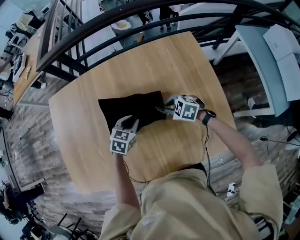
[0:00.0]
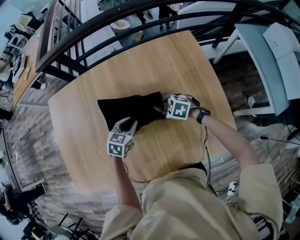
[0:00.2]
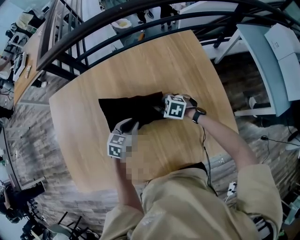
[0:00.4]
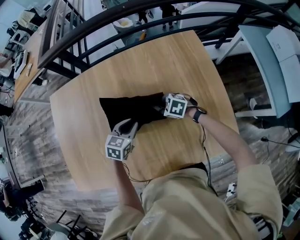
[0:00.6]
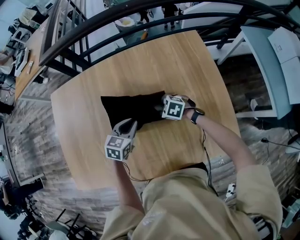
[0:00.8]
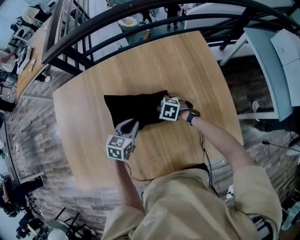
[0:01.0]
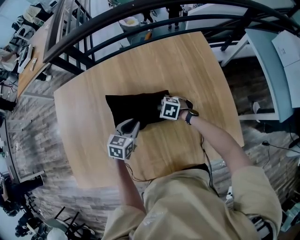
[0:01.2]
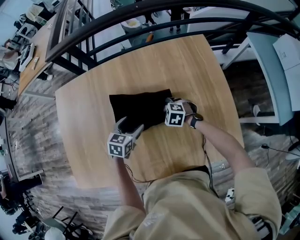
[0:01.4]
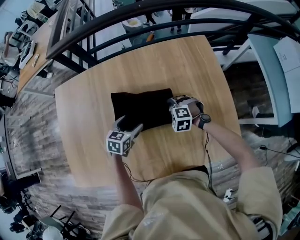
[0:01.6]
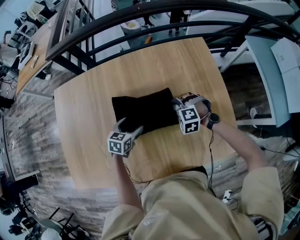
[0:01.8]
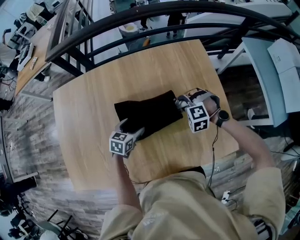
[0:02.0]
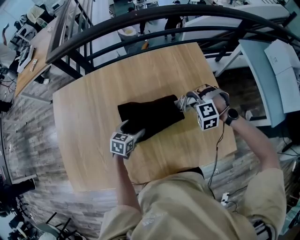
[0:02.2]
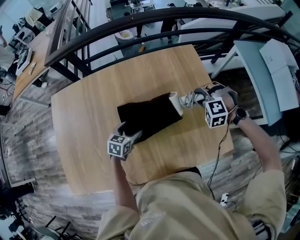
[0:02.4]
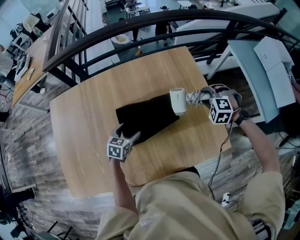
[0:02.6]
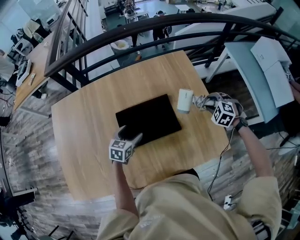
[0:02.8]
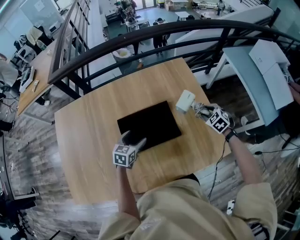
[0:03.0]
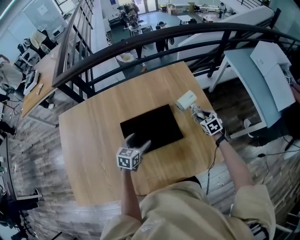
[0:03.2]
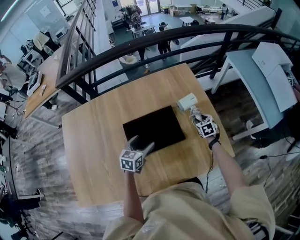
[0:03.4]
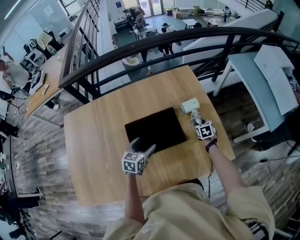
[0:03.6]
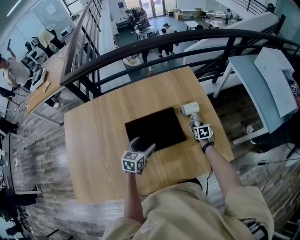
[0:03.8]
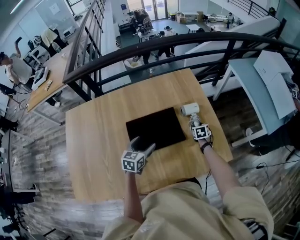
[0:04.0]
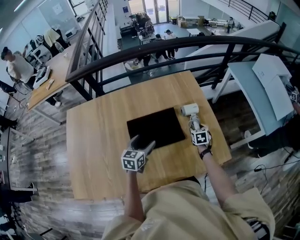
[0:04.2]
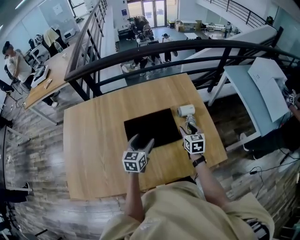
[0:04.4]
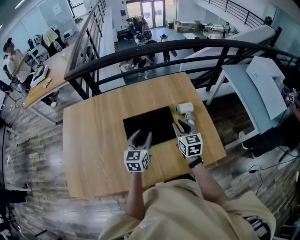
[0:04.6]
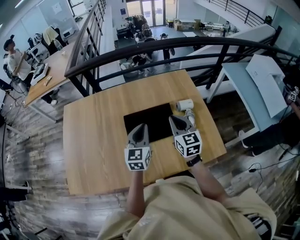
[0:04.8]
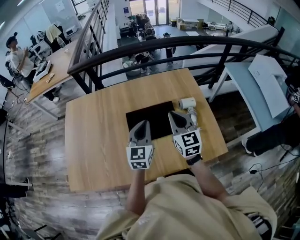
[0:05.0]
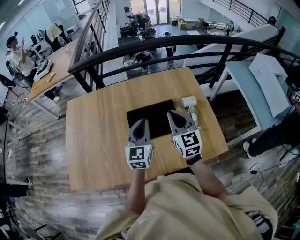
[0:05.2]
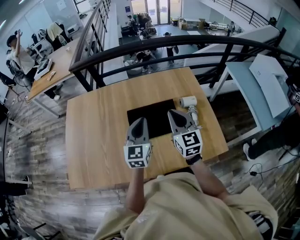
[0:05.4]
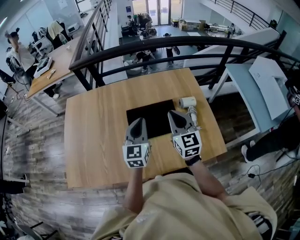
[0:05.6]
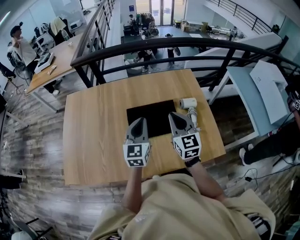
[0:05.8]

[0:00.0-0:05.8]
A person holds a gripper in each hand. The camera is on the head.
0:00.0 to 0:01.4: The right gripper moves to the left and downward, some 10 cm, and opens its fingers; the left gripper opens.
0:01.4 to 0:02.8: The left gripper moves roughly 5 cm, while the right gripper moves about 35 cm, and swivels about 30 degrees.
0:02.8 to 0:04.4: The right gripper heads to the left and backward, covering approximately 15 cm, reaches about 15 cm downward, then returns, and twists some 60 degrees clockwise, seen from behind. Meanwhile the left gripper heads upward, to the right and backward, covering roughly 10 cm, and rotates approximately 20 degrees.
0:04.4 to 0:05.8: The left gripper heads upward, covering about 10 cm, swivels roughly 20 degrees, and closes its fingers. Meanwhile the right gripper heads upward, to the left and backward, covering some 20 cm, rotates about 30 degrees, and closes up.

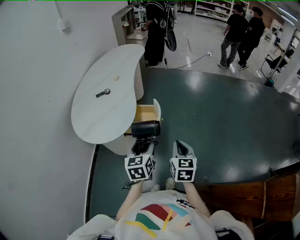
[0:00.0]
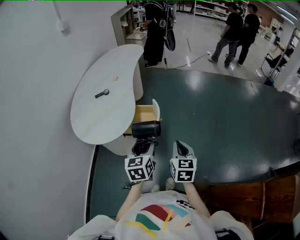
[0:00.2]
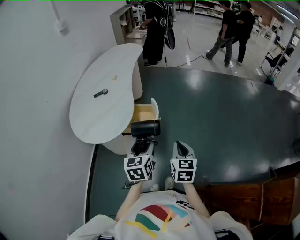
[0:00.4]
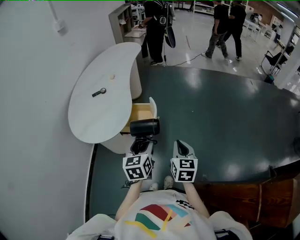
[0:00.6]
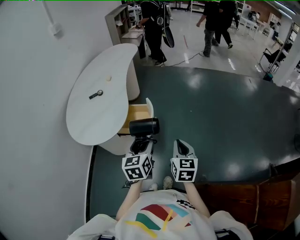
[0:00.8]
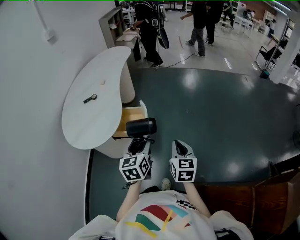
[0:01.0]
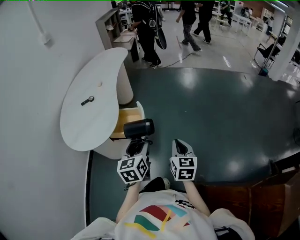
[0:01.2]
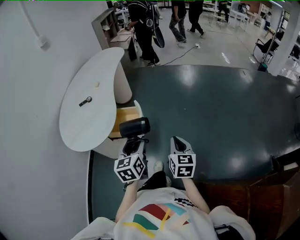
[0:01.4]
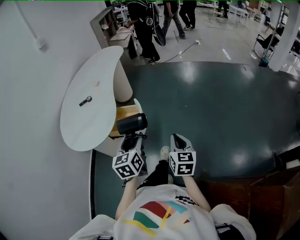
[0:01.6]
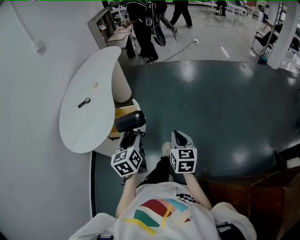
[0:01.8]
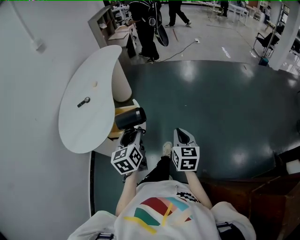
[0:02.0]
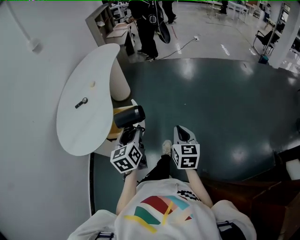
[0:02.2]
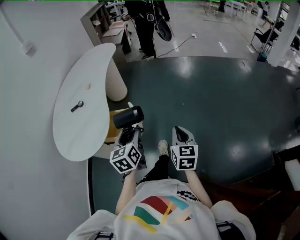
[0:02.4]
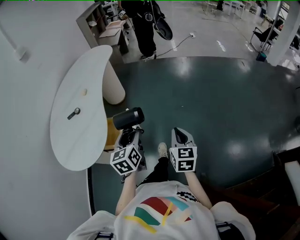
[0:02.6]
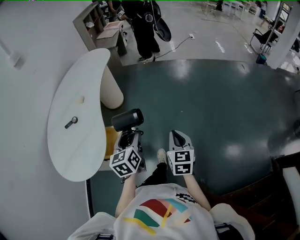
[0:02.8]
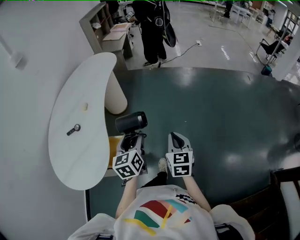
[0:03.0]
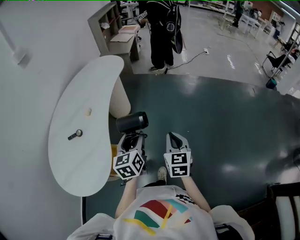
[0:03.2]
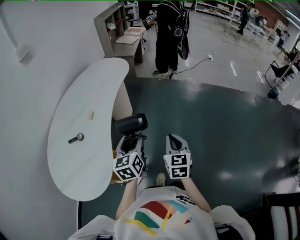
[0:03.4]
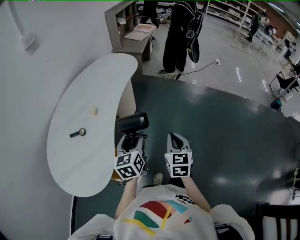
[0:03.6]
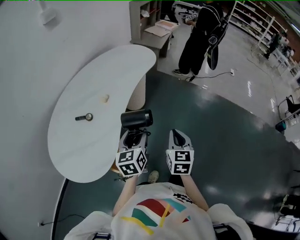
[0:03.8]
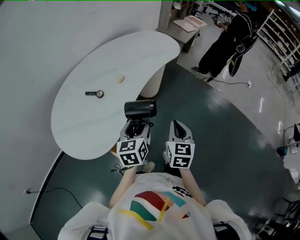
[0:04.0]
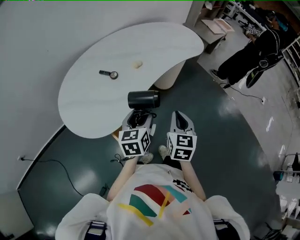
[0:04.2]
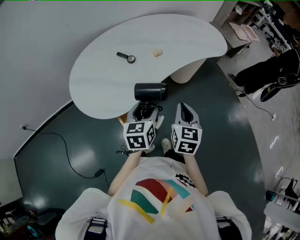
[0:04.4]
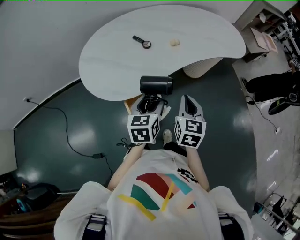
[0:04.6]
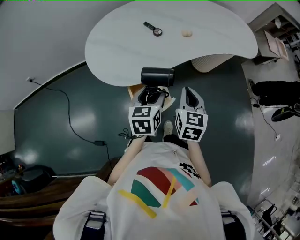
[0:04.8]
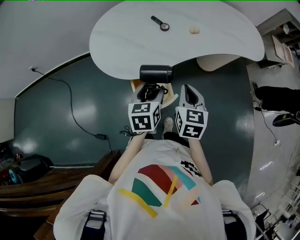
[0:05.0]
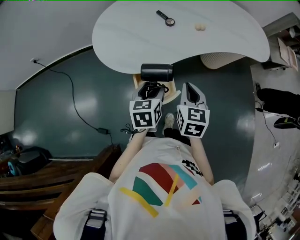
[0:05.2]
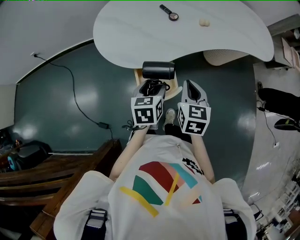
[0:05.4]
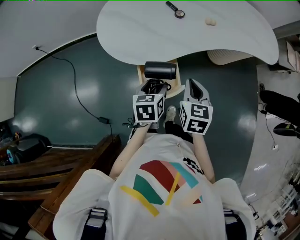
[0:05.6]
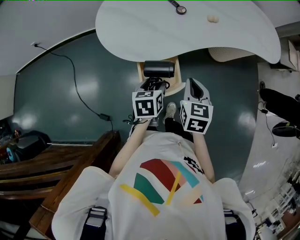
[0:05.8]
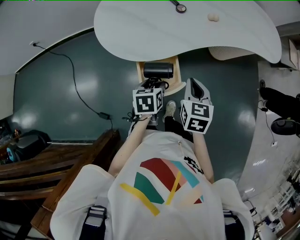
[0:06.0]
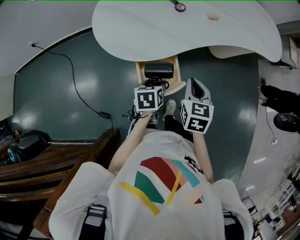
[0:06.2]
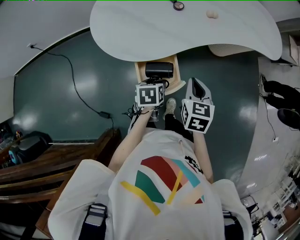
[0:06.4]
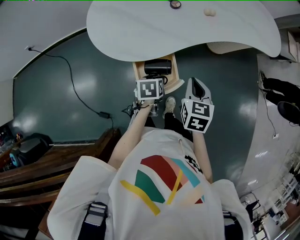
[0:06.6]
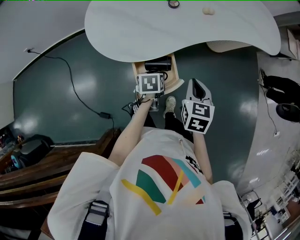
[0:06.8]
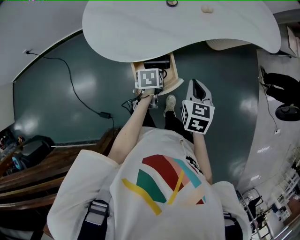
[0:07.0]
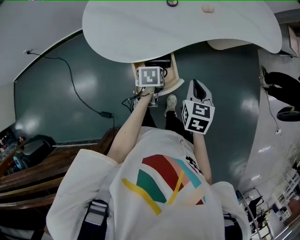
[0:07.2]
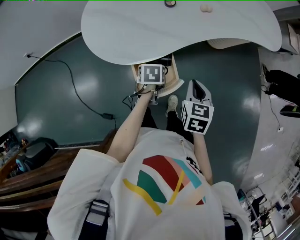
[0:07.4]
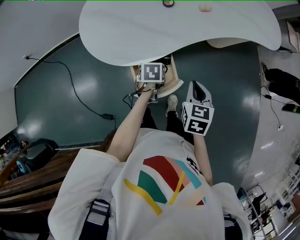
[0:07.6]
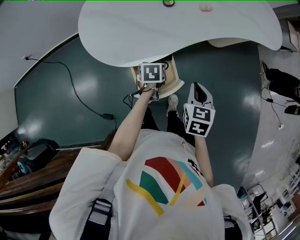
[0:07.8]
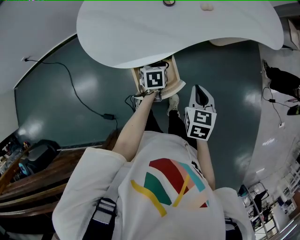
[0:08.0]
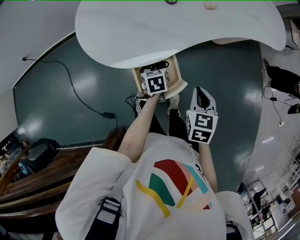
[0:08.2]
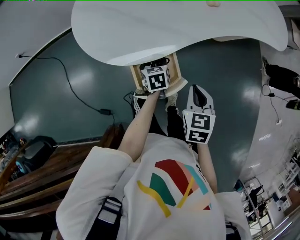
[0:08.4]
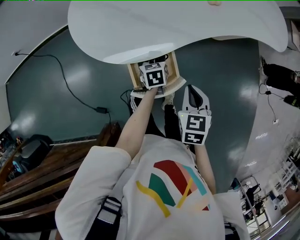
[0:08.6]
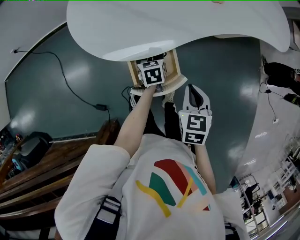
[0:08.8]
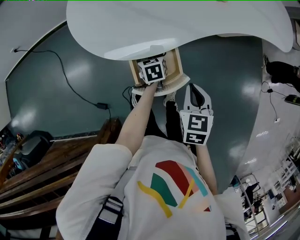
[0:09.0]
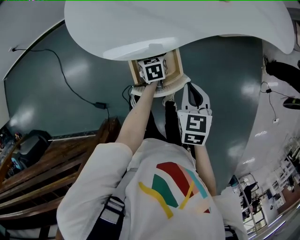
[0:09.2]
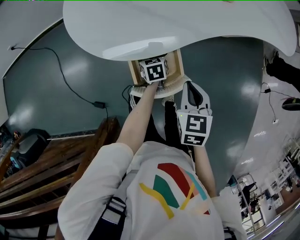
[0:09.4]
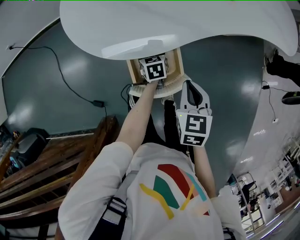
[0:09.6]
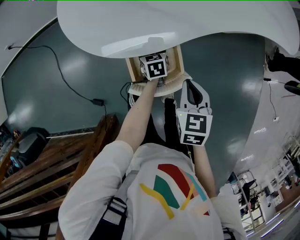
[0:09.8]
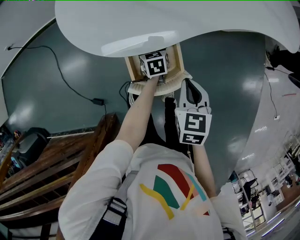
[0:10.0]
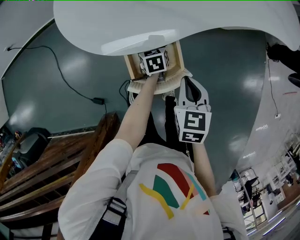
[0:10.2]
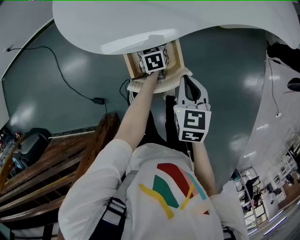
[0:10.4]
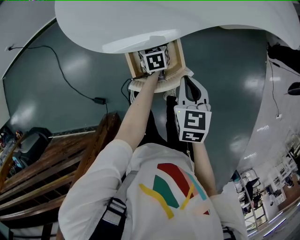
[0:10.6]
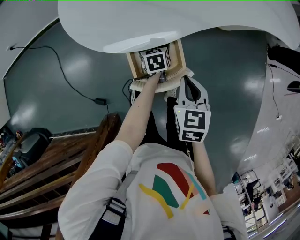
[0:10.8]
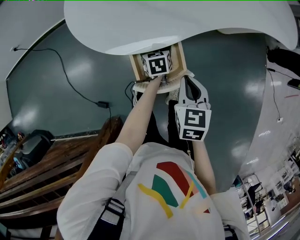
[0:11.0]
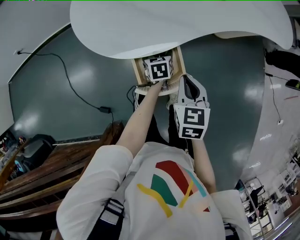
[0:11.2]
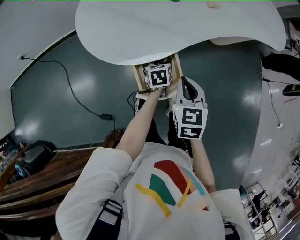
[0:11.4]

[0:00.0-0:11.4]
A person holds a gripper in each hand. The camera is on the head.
0:00.0 to 0:01.4: The two grippers go some 10 cm to the right.
0:01.4 to 0:02.8: The two grippers go some 20 cm forward.
0:02.8 to 0:04.2: The left gripper changes place by approximately 20 cm, and changes its angle by some 40 degrees. Meanwhile the right gripper shifts by roughly 35 cm, and turns by roughly 40 degrees.
0:04.2 to 0:05.6: The right gripper changes place by approximately 15 cm, and changes its angle by some 40 degrees, while the left gripper shifts about 10 cm downward, and turns by roughly 40 degrees.
0:05.6 to 0:07.2: The left gripper goes roughly 10 cm downward, and changes its angle by approximately 20 degrees, while the right gripper shifts by roughly 5 cm.
0:07.2 to 0:08.6: The left gripper moves forward and downward, roughly 10 cm, and changes its angle by roughly 20 degrees.
0:08.6 to 0:10.0: The left gripper shifts roughly 10 cm downward.
0:10.0 to 0:11.4: Both grippers move upward, approximately 5 cm.

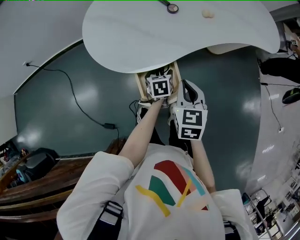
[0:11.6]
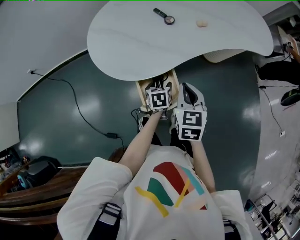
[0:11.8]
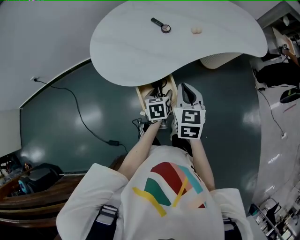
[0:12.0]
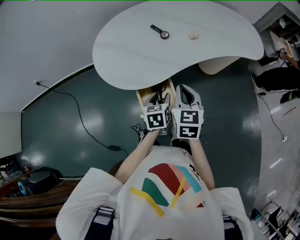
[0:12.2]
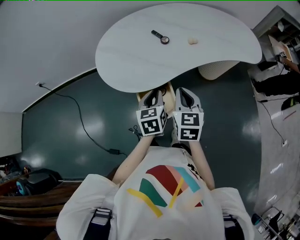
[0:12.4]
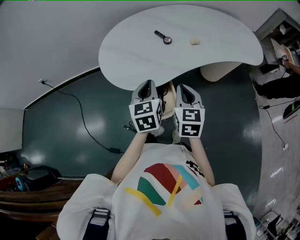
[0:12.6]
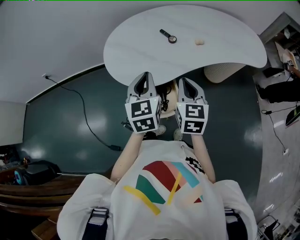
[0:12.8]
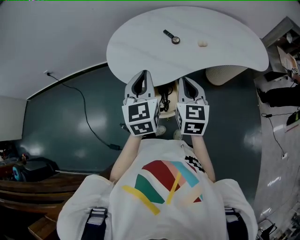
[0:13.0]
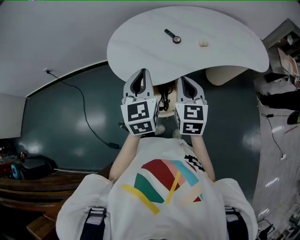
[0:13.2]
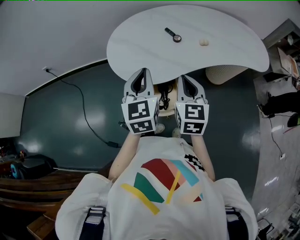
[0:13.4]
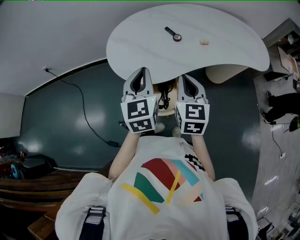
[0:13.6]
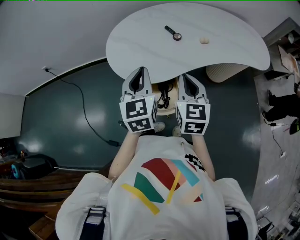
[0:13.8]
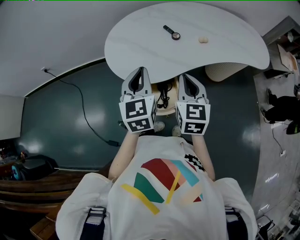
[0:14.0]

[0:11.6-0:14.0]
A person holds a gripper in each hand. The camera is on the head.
0:11.6 to 0:12.8: The right gripper moves upward, some 10 cm; the left gripper travels upward by approximately 35 cm, angles its fingers upward, by some 30 degrees, and closes its fingers.
0:12.8 to 0:14.0: The grippers make only small movements.

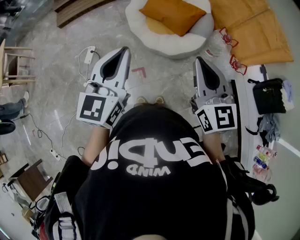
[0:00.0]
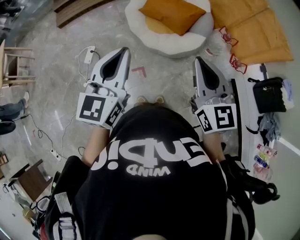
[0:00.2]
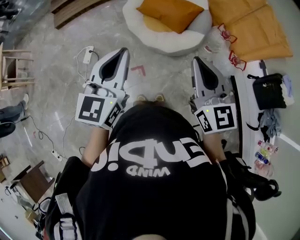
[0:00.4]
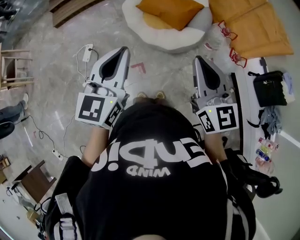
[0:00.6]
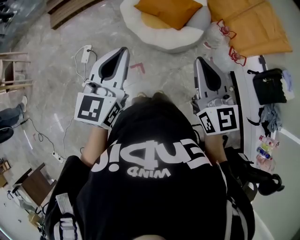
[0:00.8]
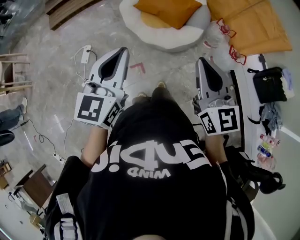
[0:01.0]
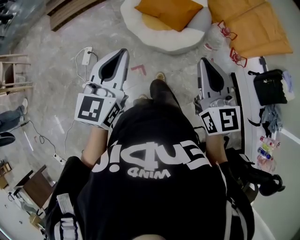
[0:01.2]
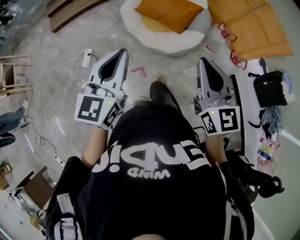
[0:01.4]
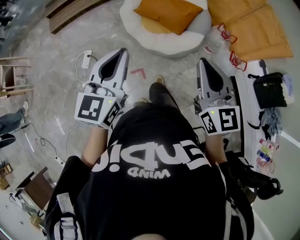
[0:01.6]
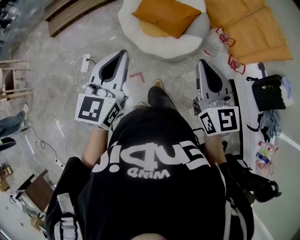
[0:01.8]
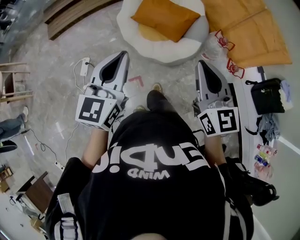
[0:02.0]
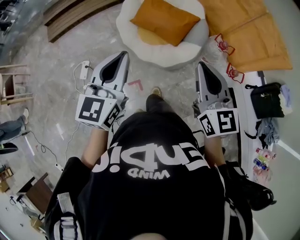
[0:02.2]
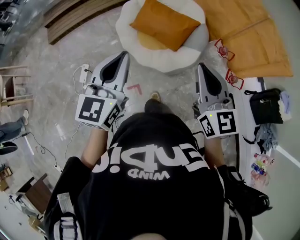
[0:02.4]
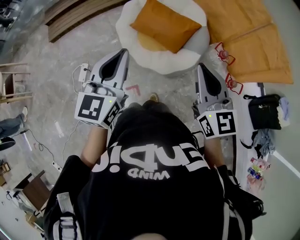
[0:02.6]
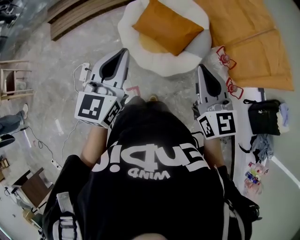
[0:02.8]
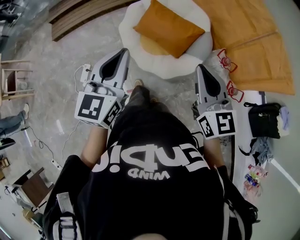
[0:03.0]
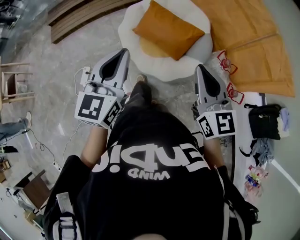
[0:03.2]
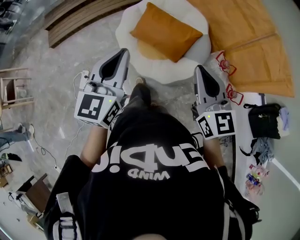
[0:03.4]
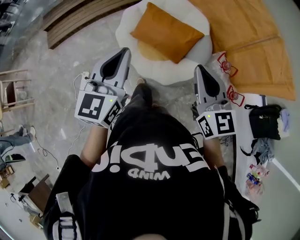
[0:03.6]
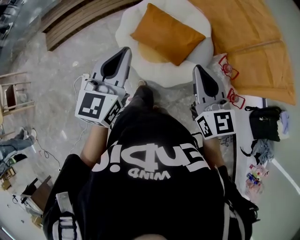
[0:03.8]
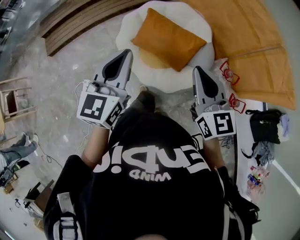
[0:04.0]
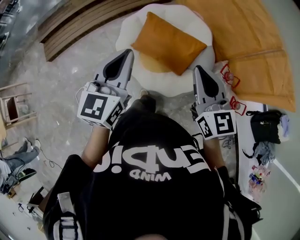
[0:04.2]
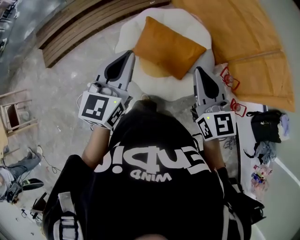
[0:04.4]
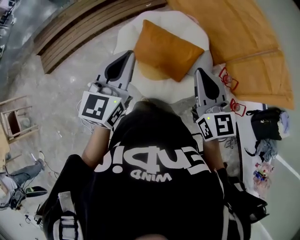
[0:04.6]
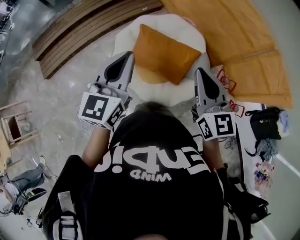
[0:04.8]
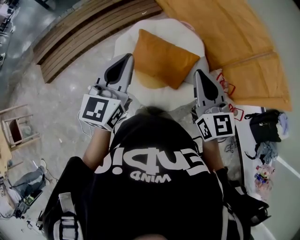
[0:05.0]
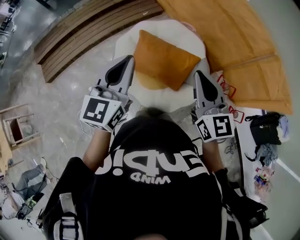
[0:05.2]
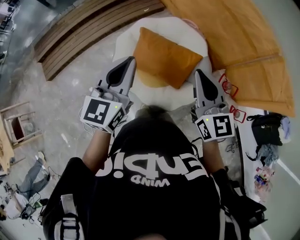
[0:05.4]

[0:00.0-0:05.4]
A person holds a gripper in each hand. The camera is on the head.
0:00.0 to 0:01.4: There are only small adjustments of the grippers.
0:01.4 to 0:02.8: Both grippers travel together forward, about 20 cm.
0:02.8 to 0:04.0: Both grippers move forward, roughly 20 cm.
0:04.0 to 0:05.4: Both grippers travel together forward, some 15 cm.
